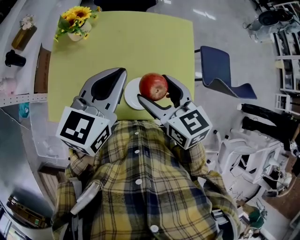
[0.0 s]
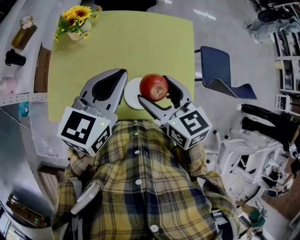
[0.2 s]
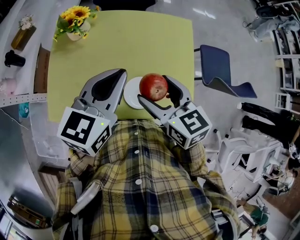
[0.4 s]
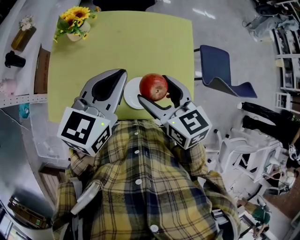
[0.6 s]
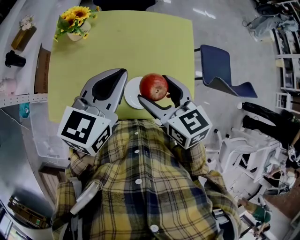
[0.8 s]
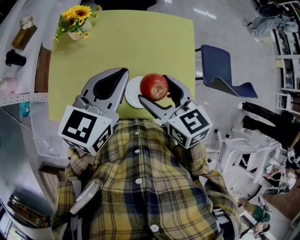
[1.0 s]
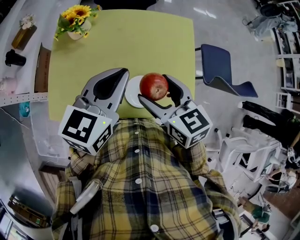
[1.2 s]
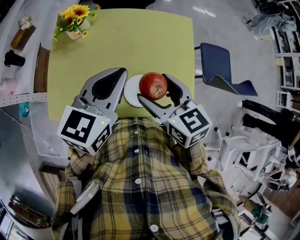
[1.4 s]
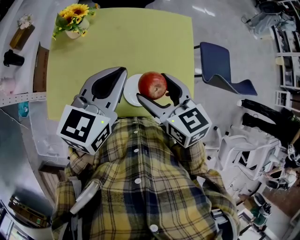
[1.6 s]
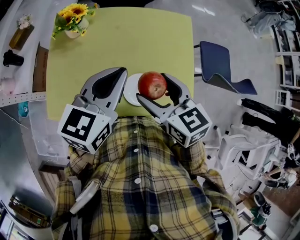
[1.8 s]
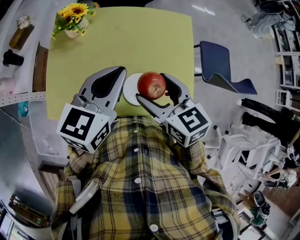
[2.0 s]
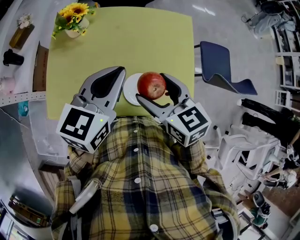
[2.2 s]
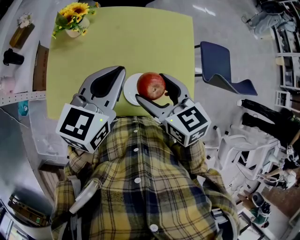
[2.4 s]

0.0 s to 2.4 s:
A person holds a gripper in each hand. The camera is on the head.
0.0 to 1.2 s: Both grippers stay put.
1.2 to 2.4 s: Both grippers stay put.

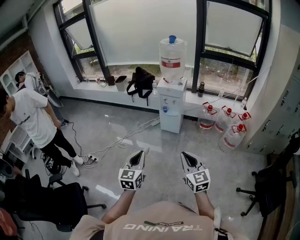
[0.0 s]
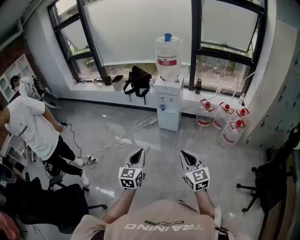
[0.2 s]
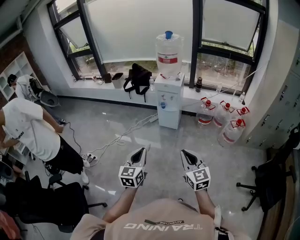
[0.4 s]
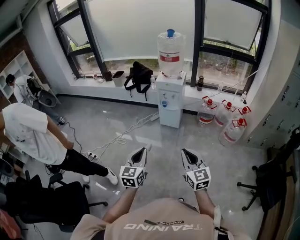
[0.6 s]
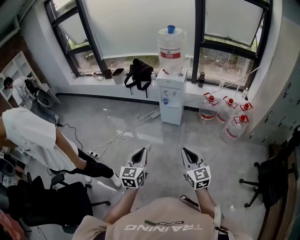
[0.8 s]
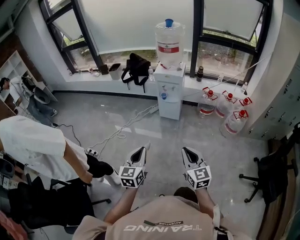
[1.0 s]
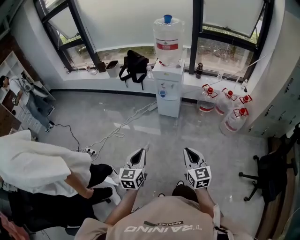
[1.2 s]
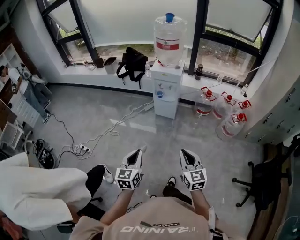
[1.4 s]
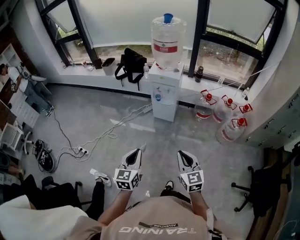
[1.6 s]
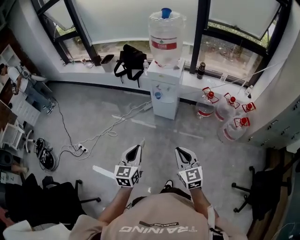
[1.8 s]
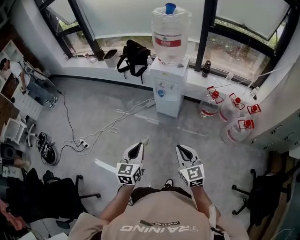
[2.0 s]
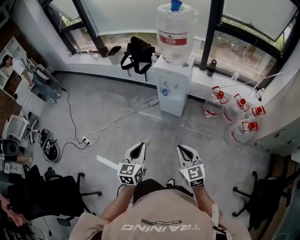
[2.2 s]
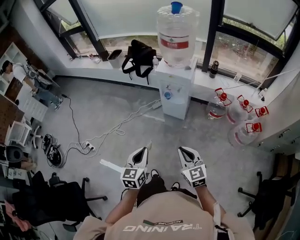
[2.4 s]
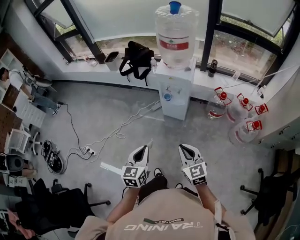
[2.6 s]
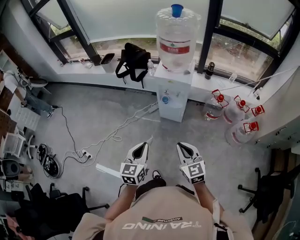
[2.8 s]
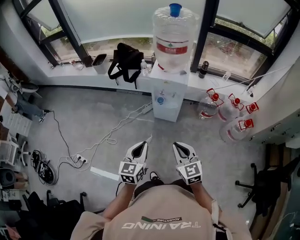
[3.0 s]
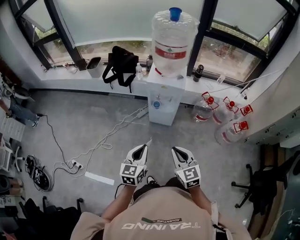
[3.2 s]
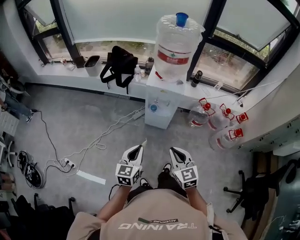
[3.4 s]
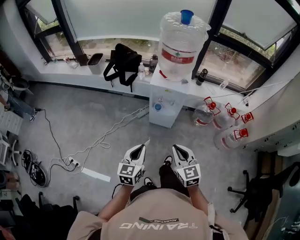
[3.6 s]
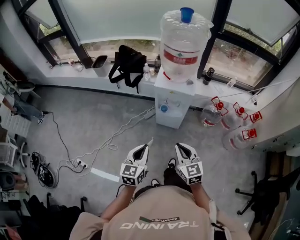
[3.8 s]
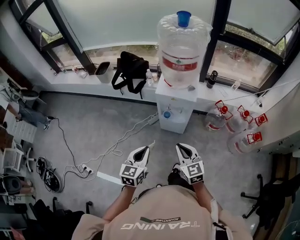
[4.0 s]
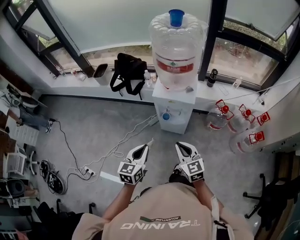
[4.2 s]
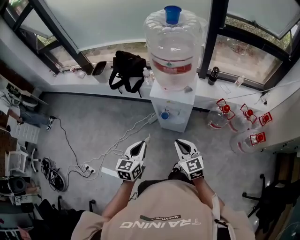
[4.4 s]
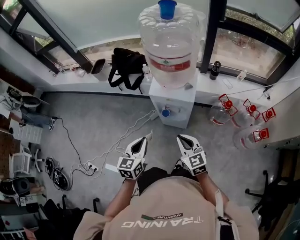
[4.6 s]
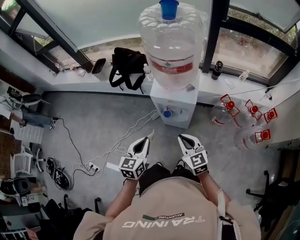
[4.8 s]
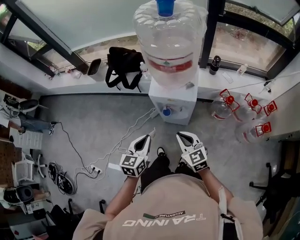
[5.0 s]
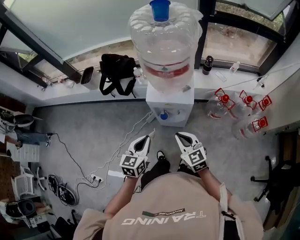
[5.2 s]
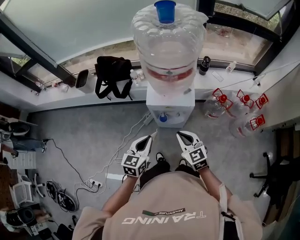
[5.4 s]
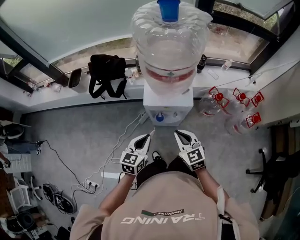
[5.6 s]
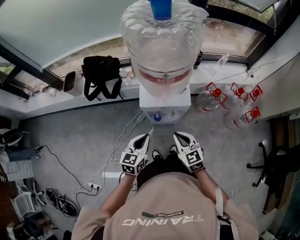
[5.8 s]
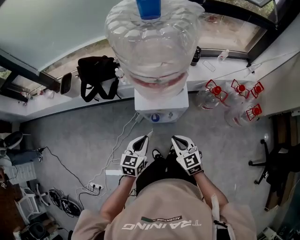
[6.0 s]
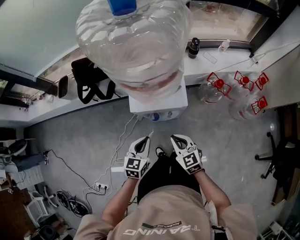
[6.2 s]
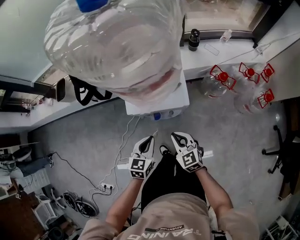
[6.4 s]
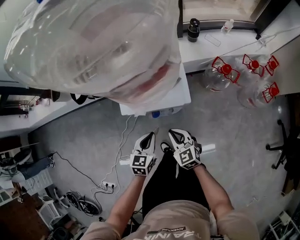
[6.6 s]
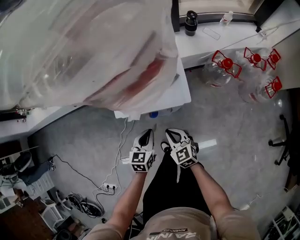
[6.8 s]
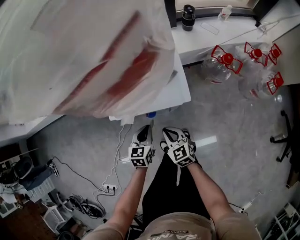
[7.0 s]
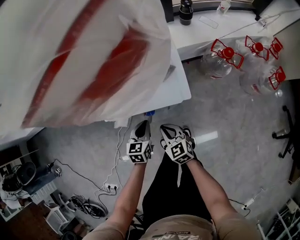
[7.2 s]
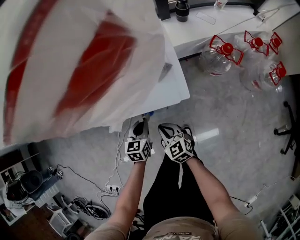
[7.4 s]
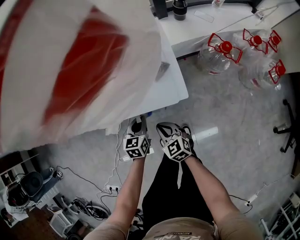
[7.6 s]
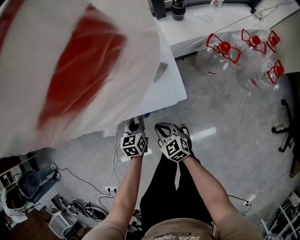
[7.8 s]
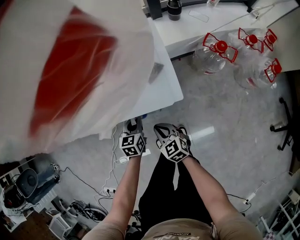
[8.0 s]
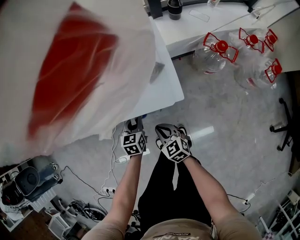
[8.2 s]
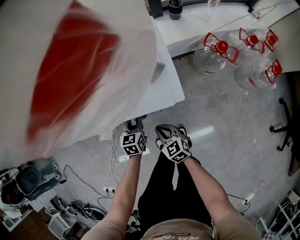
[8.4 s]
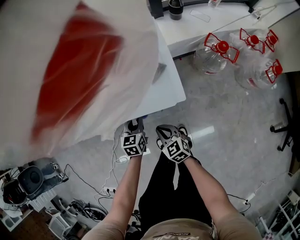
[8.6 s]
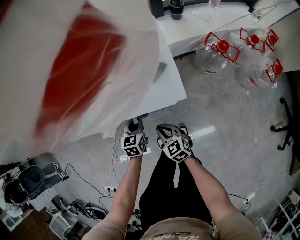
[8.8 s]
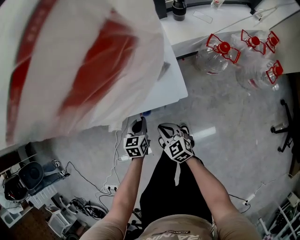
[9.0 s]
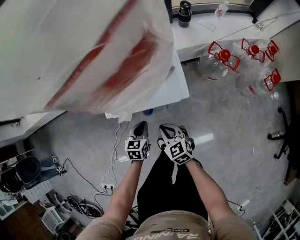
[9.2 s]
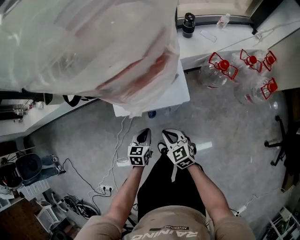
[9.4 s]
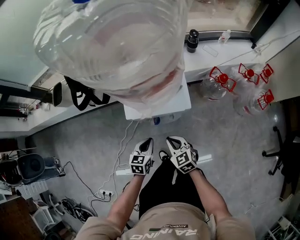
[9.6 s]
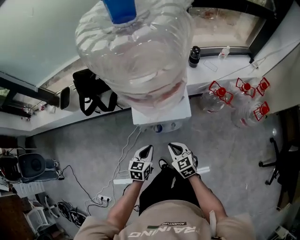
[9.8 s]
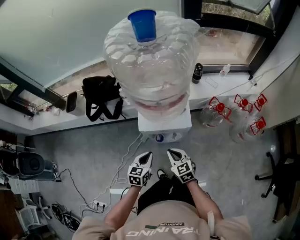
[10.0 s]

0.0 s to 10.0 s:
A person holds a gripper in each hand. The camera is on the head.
0.0 to 1.4 s: Both grippers travel together forward and downward, some 10 cm.
1.4 to 2.8 s: Both grippers move forward, roughly 25 cm.
2.8 to 4.2 s: The grippers both shift forward by roughly 20 cm.
4.2 to 5.8 s: Both grippers move forward, some 15 cm.
5.8 to 7.2 s: The two grippers go about 30 cm downward.
7.2 to 8.6 s: Both grippers move downward, about 5 cm.
8.6 to 10.0 s: The left gripper goes about 25 cm upward and backward, while the right gripper moves upward, roughly 25 cm.

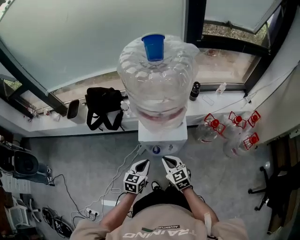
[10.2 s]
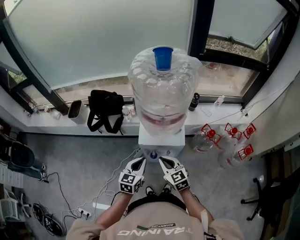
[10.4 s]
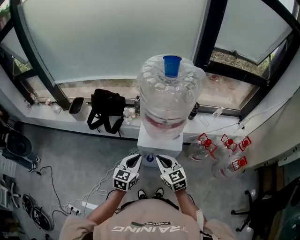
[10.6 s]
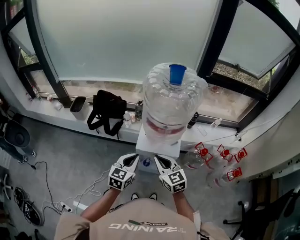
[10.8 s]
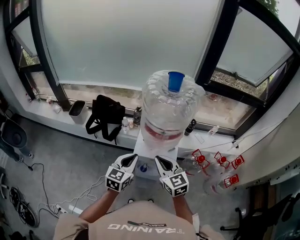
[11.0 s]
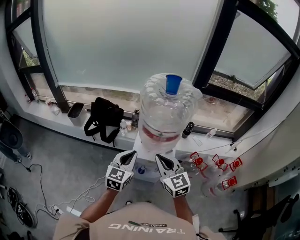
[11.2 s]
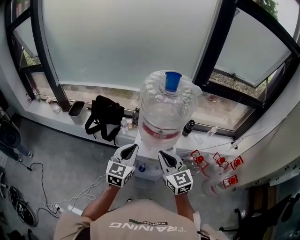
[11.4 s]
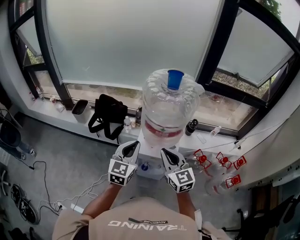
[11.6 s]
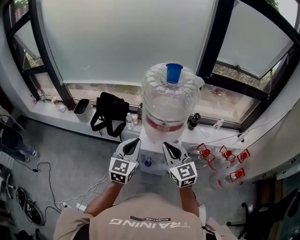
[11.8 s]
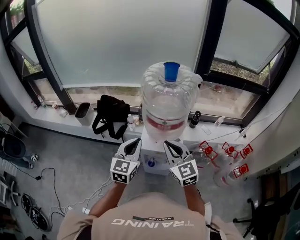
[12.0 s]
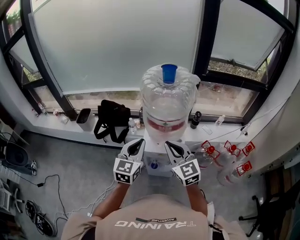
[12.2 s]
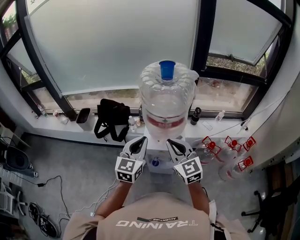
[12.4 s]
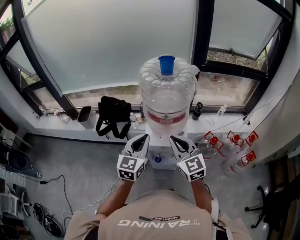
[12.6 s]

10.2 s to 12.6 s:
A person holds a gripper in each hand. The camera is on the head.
10.2 to 11.4 s: The grippers both shift upward by approximately 25 cm. The left gripper changes its angle by some 30 degrees; the right gripper rotates some 20 degrees.
11.4 to 12.6 s: The grippers stay close to where they were, moving slightly.

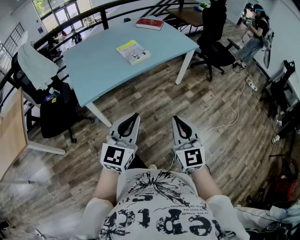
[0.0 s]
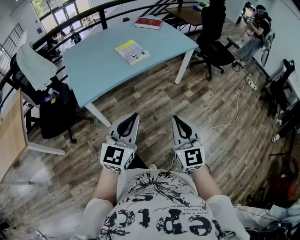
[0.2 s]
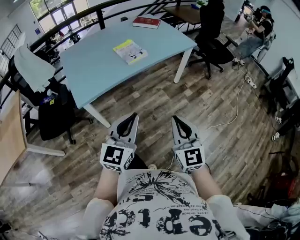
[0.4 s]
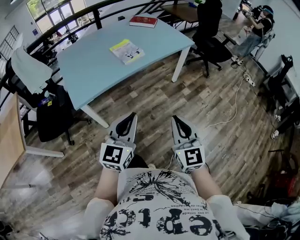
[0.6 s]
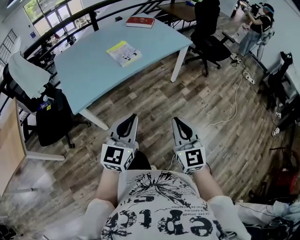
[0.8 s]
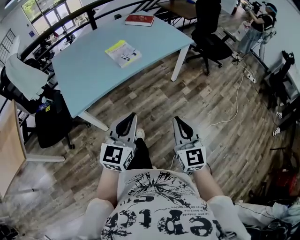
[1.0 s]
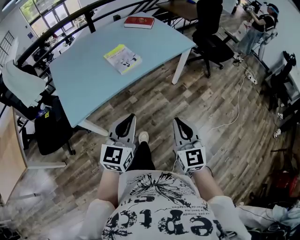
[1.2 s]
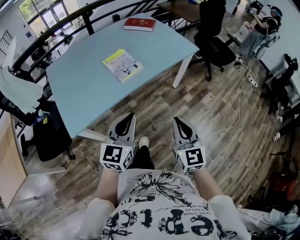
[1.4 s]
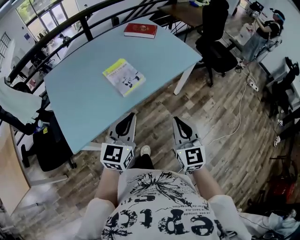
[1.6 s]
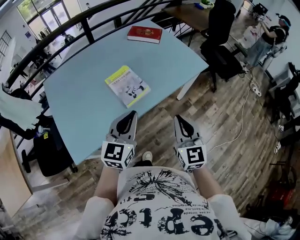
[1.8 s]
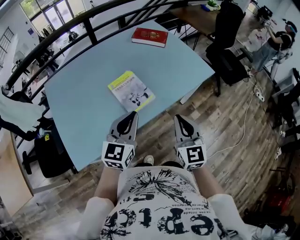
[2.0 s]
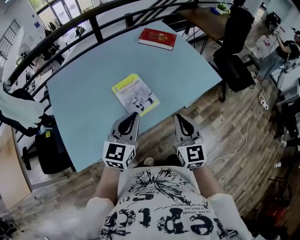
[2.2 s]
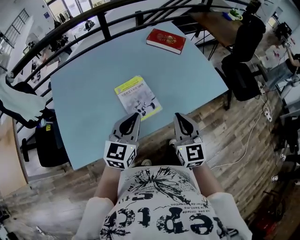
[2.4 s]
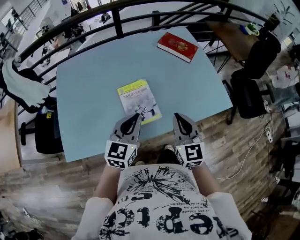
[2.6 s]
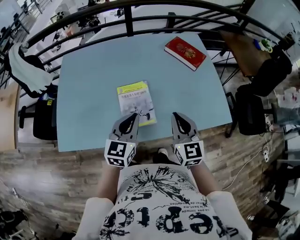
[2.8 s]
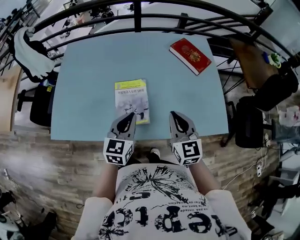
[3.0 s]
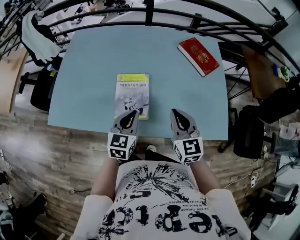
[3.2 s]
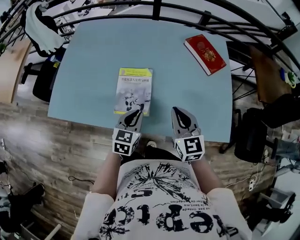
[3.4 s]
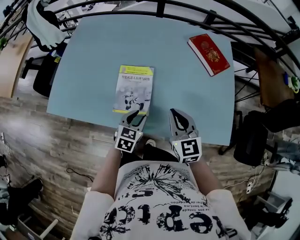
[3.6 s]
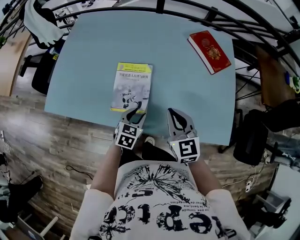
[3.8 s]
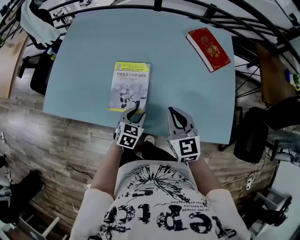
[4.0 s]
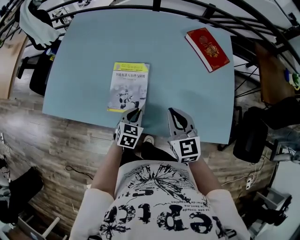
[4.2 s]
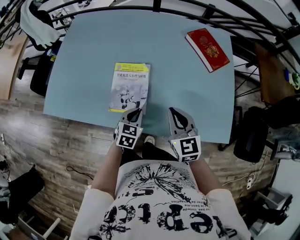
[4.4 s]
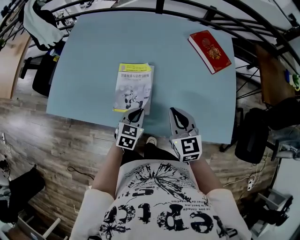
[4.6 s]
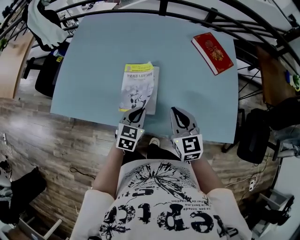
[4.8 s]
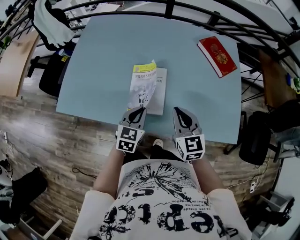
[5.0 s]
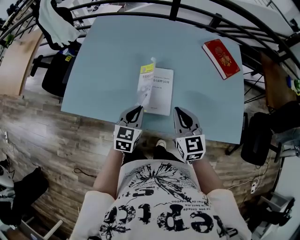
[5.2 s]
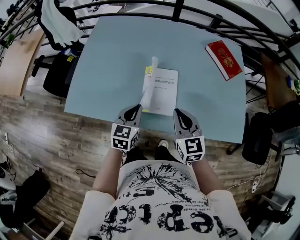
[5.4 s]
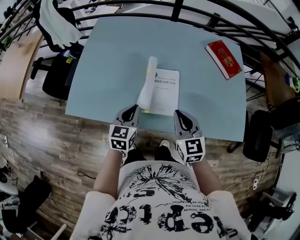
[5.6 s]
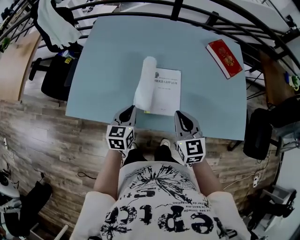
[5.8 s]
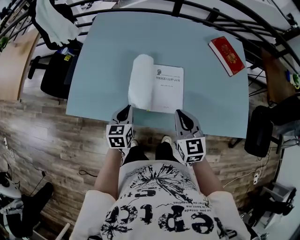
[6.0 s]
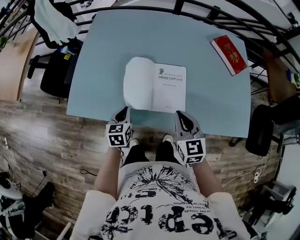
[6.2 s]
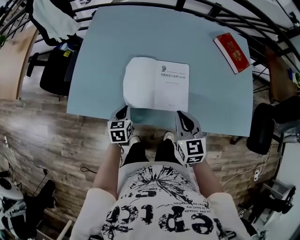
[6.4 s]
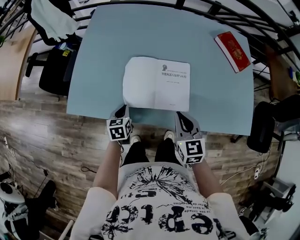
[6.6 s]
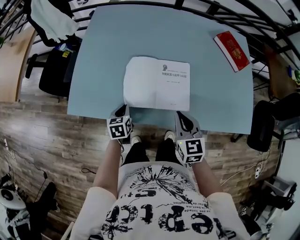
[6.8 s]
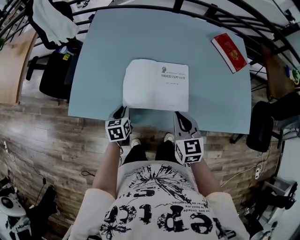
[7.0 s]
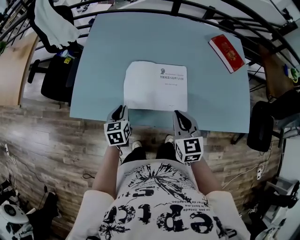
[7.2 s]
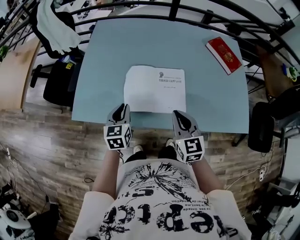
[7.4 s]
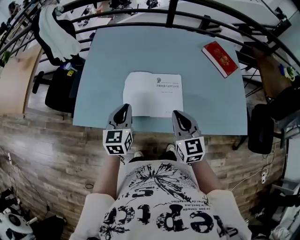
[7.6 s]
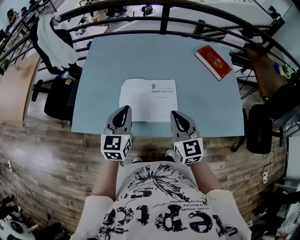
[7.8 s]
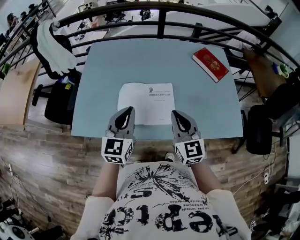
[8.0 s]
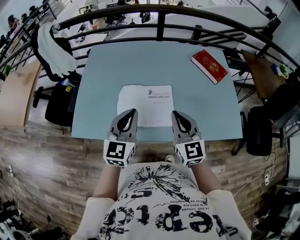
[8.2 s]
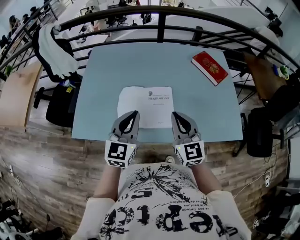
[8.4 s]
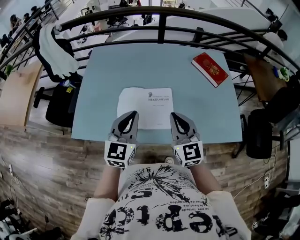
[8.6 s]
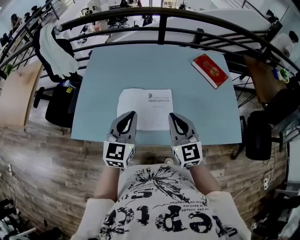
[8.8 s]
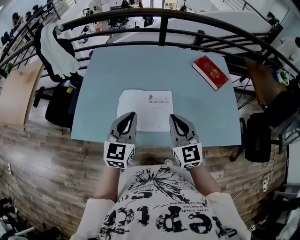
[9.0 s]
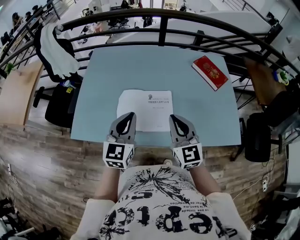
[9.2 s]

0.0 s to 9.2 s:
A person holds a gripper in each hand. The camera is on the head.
0.0 to 1.6 s: The grippers both shift forward by approximately 35 cm.
1.6 to 3.0 s: The right gripper moves approximately 40 cm, and changes its angle by approximately 40 degrees; the left gripper changes place by about 30 cm, and swivels about 40 degrees.
3.0 to 4.6 s: The left gripper moves downward, approximately 15 cm, and opens, then closes once more, while the right gripper goes some 5 cm downward.
4.6 to 6.2 s: The right gripper shifts approximately 15 cm to the left. Meanwhile the left gripper is displaced to the left by some 25 cm, and turns by some 20 degrees.
6.2 to 7.6 s: The right gripper heads upward, covering approximately 5 cm. The left gripper goes about 15 cm upward, and changes its angle by approximately 20 degrees.
7.6 to 9.2 s: The right gripper is displaced upward by about 5 cm, while the left gripper heads upward and to the right, covering approximately 10 cm.
